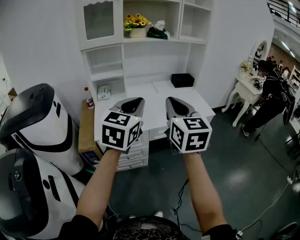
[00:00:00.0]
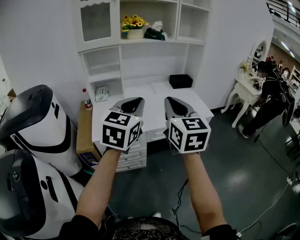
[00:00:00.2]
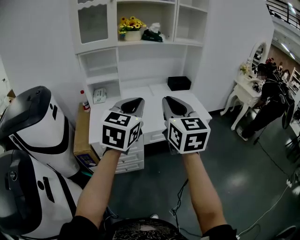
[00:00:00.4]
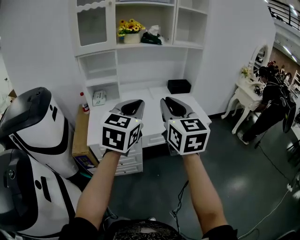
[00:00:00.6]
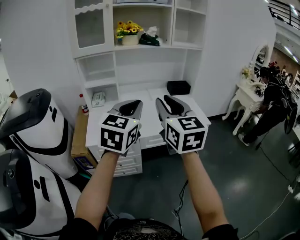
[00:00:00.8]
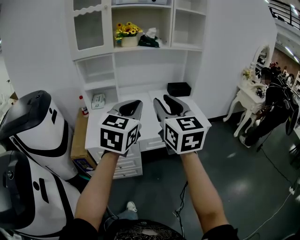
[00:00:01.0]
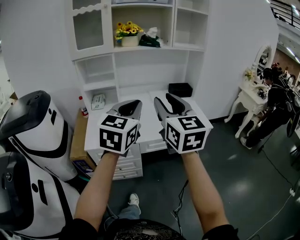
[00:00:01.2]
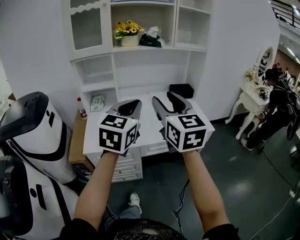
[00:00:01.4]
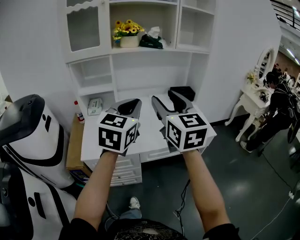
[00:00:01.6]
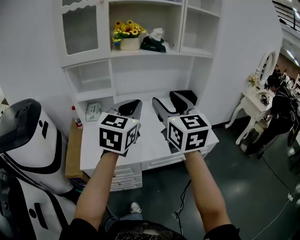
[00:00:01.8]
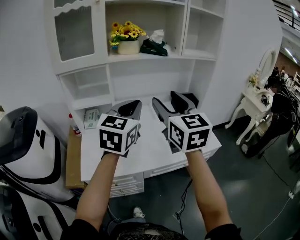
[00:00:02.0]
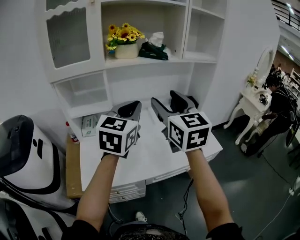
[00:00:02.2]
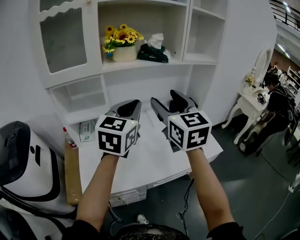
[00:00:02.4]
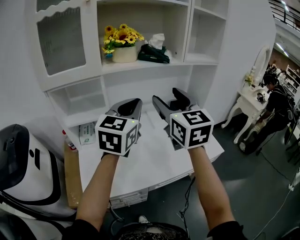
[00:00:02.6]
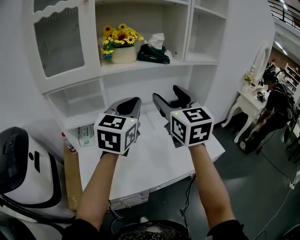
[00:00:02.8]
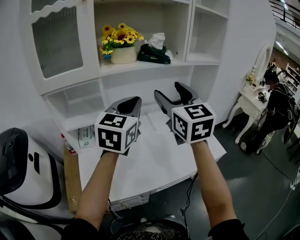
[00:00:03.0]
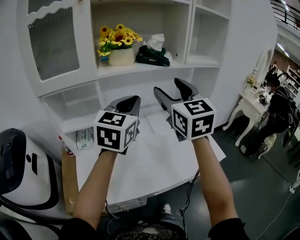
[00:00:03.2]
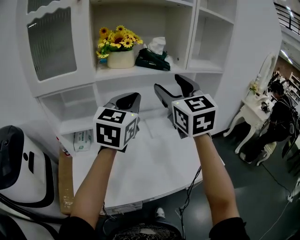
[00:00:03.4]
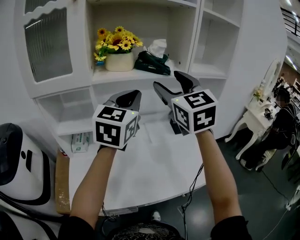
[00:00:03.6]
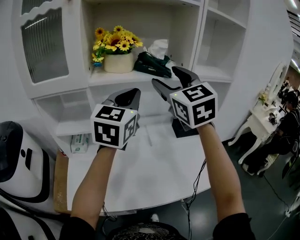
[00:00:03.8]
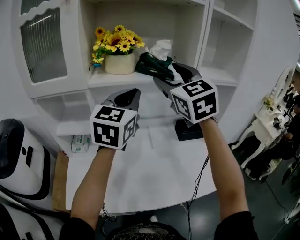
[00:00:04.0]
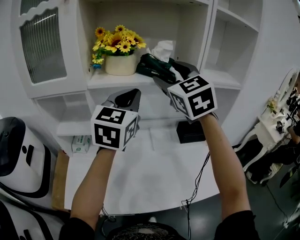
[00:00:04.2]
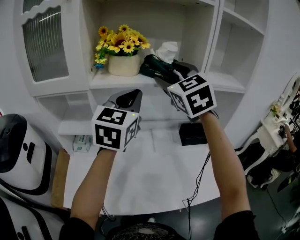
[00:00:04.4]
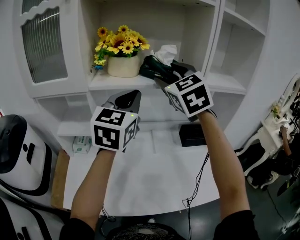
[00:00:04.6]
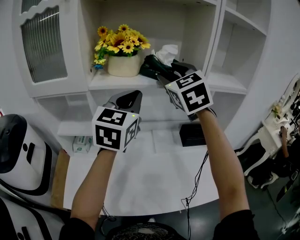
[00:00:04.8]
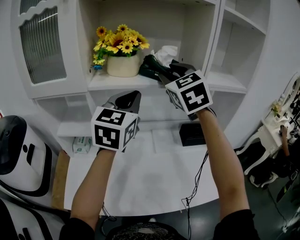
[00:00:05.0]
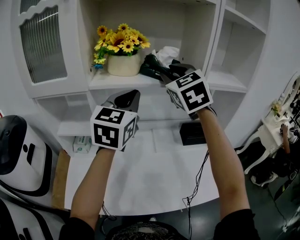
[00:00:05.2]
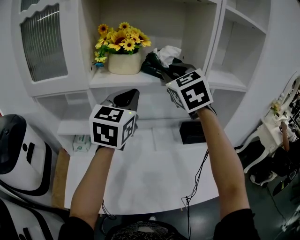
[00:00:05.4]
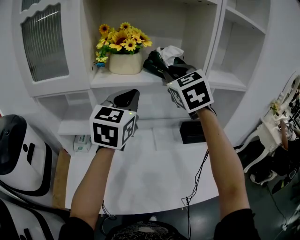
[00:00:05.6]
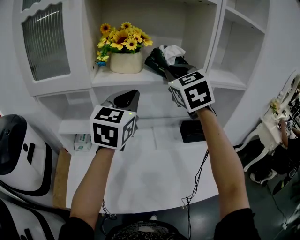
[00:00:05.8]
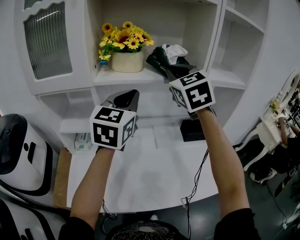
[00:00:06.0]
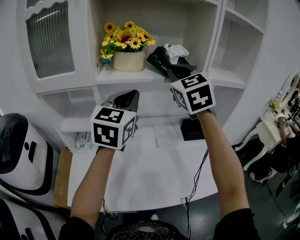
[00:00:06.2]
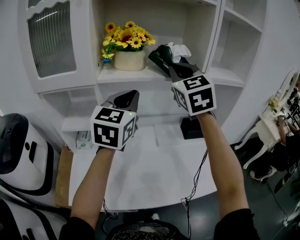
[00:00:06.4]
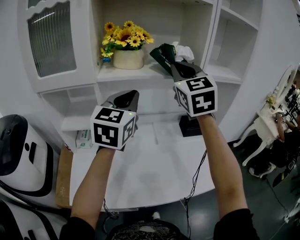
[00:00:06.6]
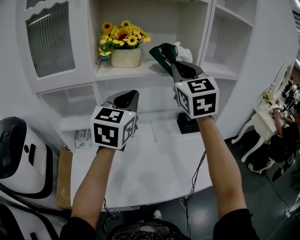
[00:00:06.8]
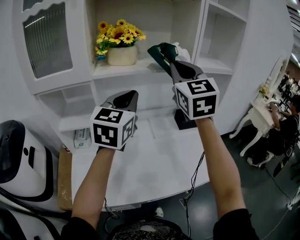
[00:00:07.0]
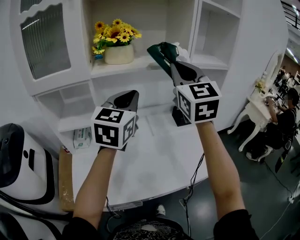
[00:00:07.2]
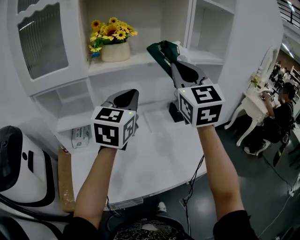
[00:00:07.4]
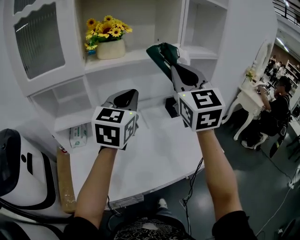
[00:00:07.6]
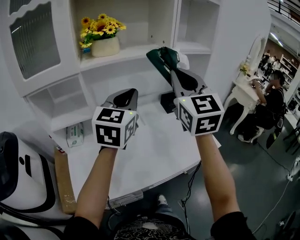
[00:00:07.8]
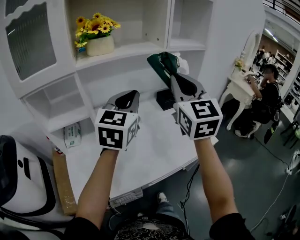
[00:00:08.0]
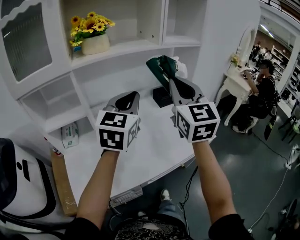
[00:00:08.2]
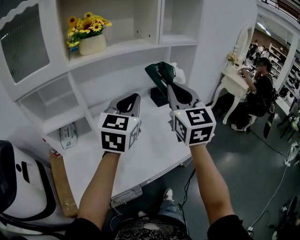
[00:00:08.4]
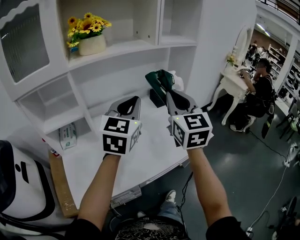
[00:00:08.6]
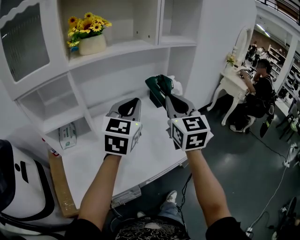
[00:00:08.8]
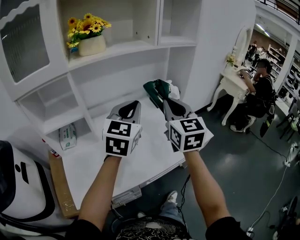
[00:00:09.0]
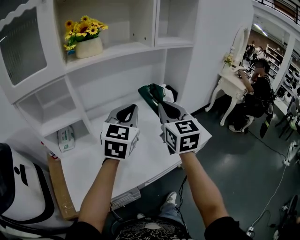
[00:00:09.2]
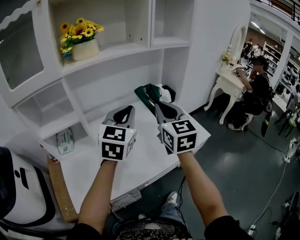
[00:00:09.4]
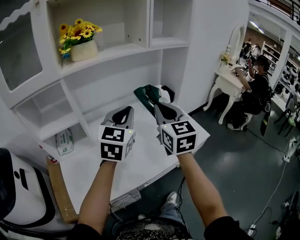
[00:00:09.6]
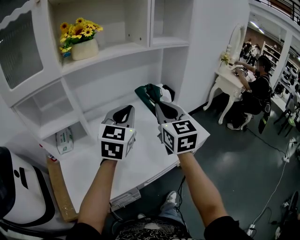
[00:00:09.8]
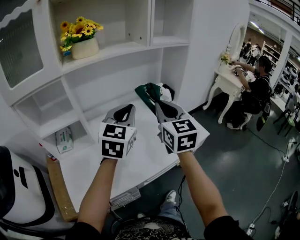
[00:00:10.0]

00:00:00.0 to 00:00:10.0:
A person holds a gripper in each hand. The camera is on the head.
00:00:00.0 to 00:00:01.4: Both grippers move forward and to the right, some 10 cm. The right gripper opens.
00:00:01.4 to 00:00:02.8: Both grippers move forward, about 30 cm.
00:00:02.8 to 00:00:04.2: The grippers both shift forward by approximately 15 cm. The right gripper swivels some 30 degrees.
00:00:04.2 to 00:00:05.8: The right gripper closes its fingers.
00:00:05.8 to 00:00:07.2: The right gripper is displaced backward by approximately 10 cm, and rotates some 20 degrees; the left gripper is displaced backward by roughly 5 cm.
00:00:07.2 to 00:00:08.6: The right gripper travels downward, backward and to the right by roughly 20 cm; the left gripper moves to the right, downward and backward, approximately 10 cm.
00:00:08.6 to 00:00:10.0: The grippers move only a little.

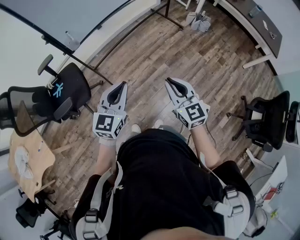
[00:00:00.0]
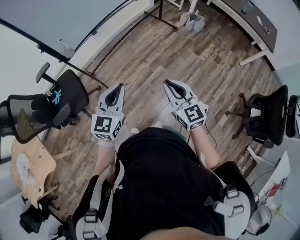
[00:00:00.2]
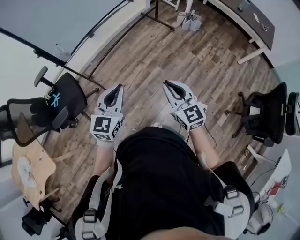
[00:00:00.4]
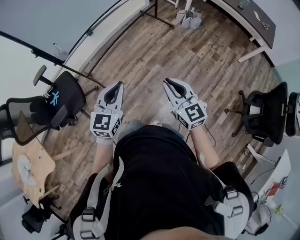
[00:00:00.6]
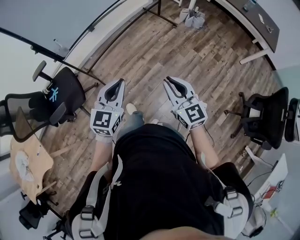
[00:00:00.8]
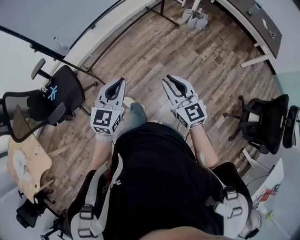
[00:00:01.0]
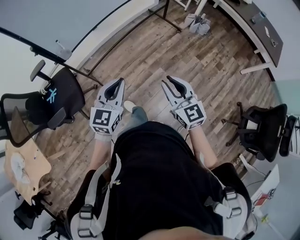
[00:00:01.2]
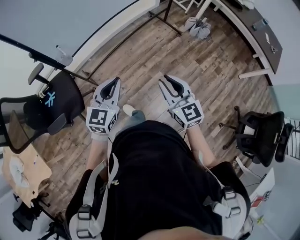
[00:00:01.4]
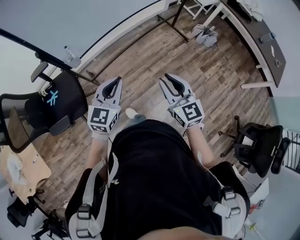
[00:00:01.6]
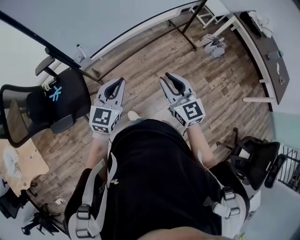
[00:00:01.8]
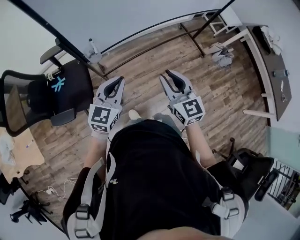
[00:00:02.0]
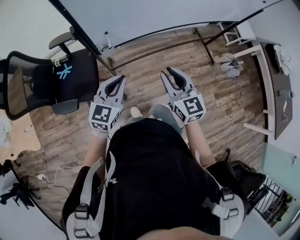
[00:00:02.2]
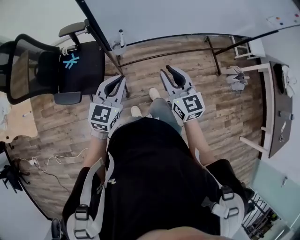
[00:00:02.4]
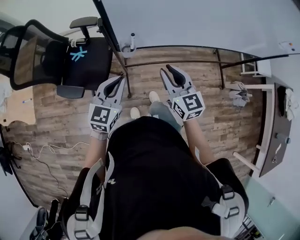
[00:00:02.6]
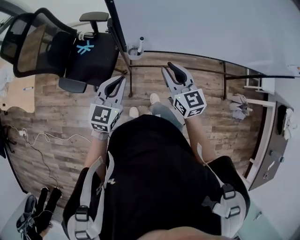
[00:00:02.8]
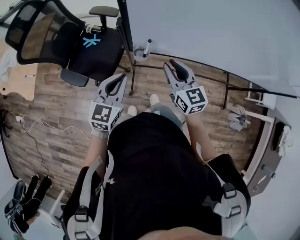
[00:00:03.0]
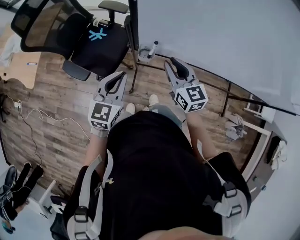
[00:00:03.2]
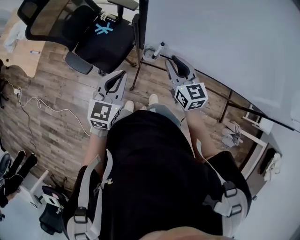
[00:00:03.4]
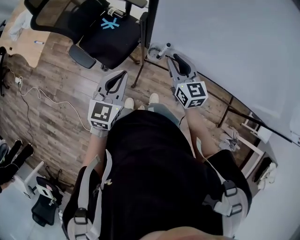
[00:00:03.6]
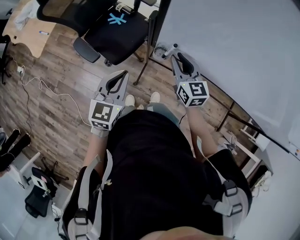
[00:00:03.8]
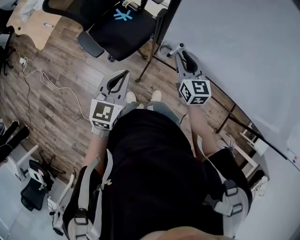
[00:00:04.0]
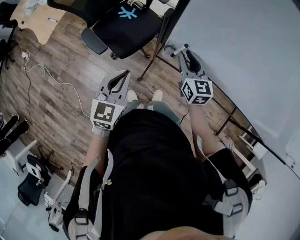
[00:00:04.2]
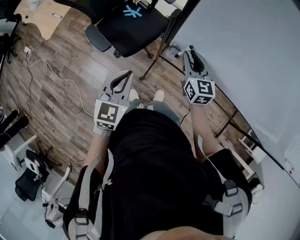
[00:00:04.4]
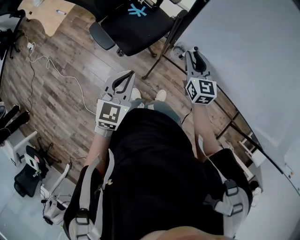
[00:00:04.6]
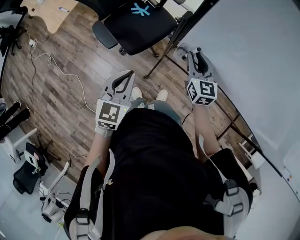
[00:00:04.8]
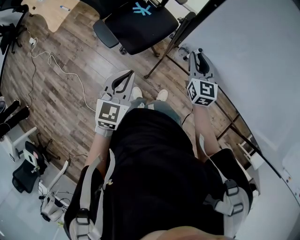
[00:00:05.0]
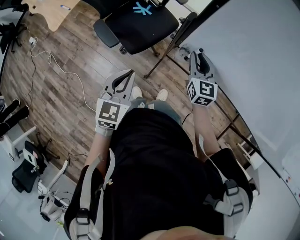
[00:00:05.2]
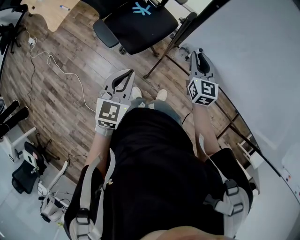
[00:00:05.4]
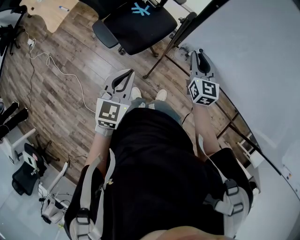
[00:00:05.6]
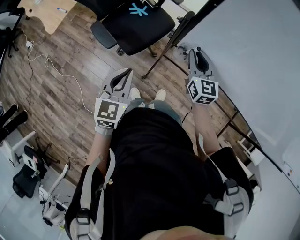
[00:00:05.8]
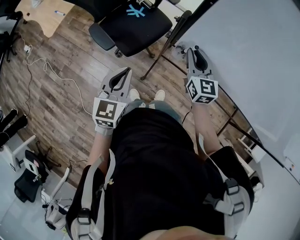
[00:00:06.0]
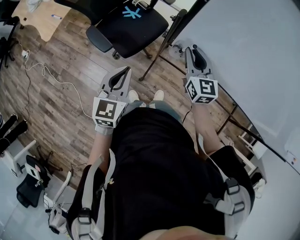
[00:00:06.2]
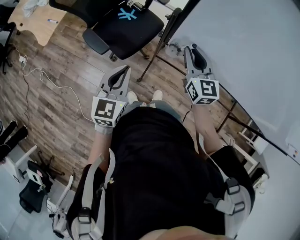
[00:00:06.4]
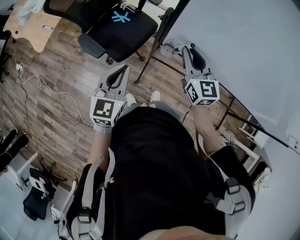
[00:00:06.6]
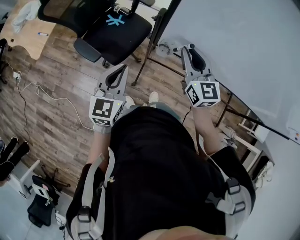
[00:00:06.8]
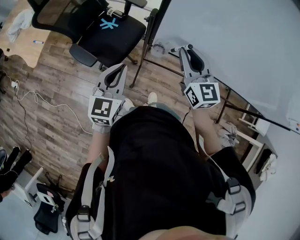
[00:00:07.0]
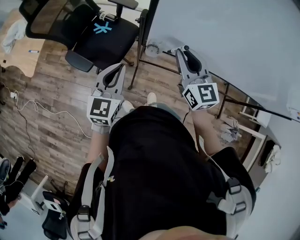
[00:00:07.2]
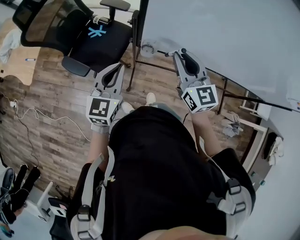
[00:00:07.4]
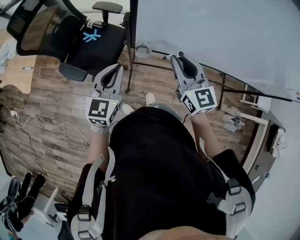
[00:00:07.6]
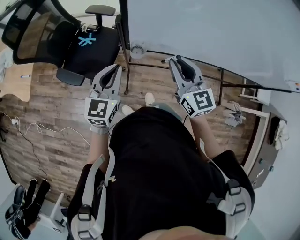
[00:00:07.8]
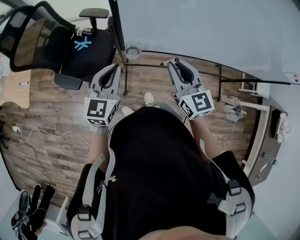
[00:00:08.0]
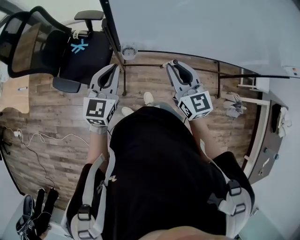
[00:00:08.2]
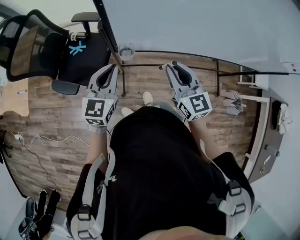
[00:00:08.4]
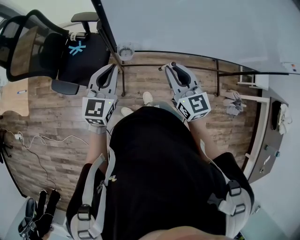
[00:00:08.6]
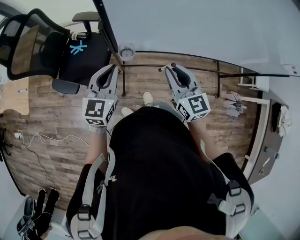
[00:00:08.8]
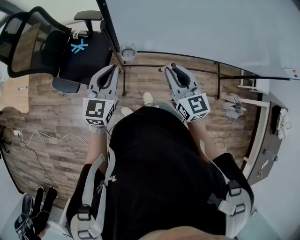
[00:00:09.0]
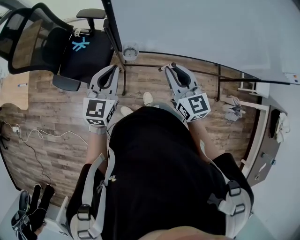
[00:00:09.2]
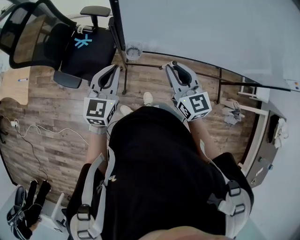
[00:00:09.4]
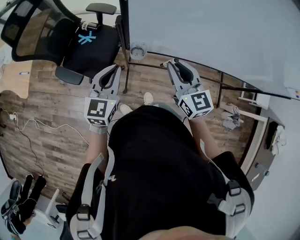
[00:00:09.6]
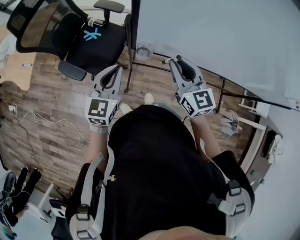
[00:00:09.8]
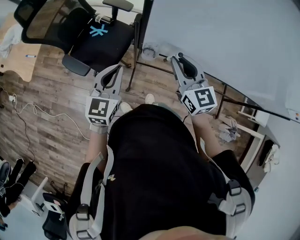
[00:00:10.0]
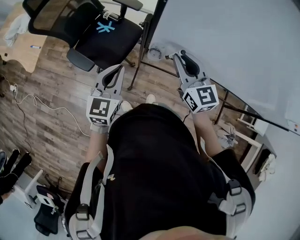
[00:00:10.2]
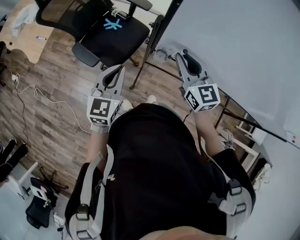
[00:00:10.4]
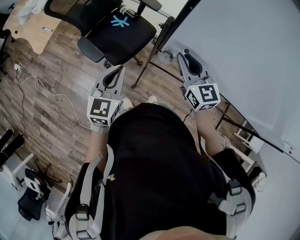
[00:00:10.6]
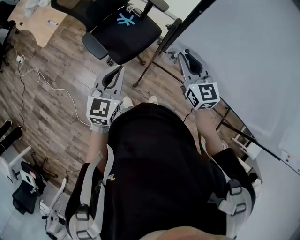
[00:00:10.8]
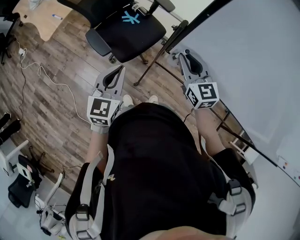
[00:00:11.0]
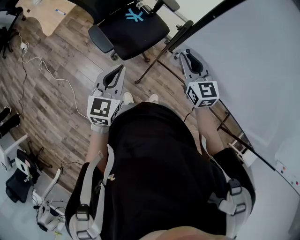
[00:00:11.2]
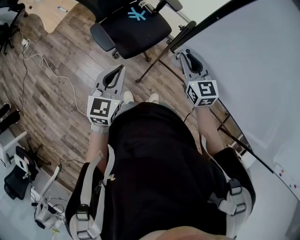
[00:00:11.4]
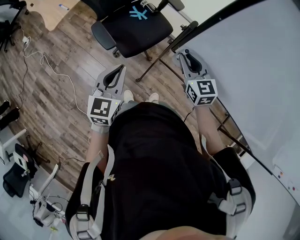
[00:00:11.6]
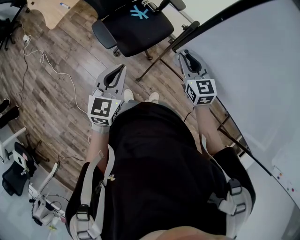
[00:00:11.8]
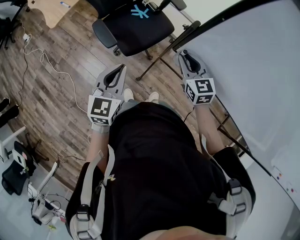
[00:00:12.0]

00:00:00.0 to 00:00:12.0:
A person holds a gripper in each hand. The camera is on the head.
00:00:00.0 to 00:00:01.6: The grippers both shift forward by about 20 cm.
00:00:01.6 to 00:00:03.0: The left gripper ends up roughly 25 cm from where it was, and changes its angle by some 50 degrees. Meanwhile the right gripper changes place by about 40 cm, and rotates roughly 40 degrees.
00:00:03.0 to 00:00:04.4: The right gripper heads forward and downward, covering approximately 10 cm, while the left gripper moves to the left, some 5 cm, and rotates roughly 30 degrees.
00:00:04.4 to 00:00:06.0: The grippers make only small movements.
00:00:06.0 to 00:00:07.6: The right gripper moves backward, upward and to the right, some 15 cm. Meanwhile the left gripper heads to the right, covering some 10 cm, and changes its angle by approximately 20 degrees.
00:00:07.6 to 00:00:09.0: The right gripper moves some 5 cm.
00:00:09.0 to 00:00:10.4: The left gripper shifts about 10 cm to the left, and swivels about 20 degrees, while the right gripper travels forward and to the left by some 15 cm.
00:00:10.4 to 00:00:12.0: The right gripper goes about 10 cm downward and to the left, while the left gripper goes roughly 5 cm to the left.

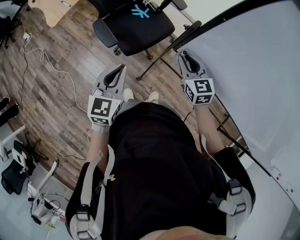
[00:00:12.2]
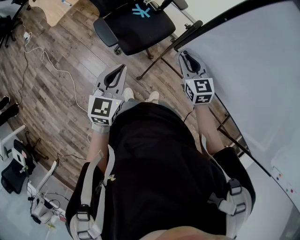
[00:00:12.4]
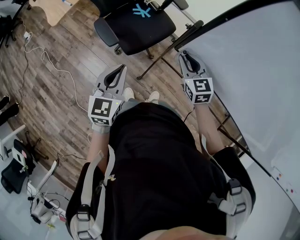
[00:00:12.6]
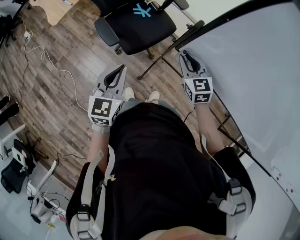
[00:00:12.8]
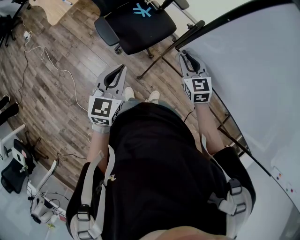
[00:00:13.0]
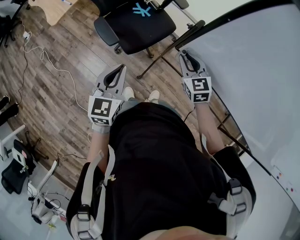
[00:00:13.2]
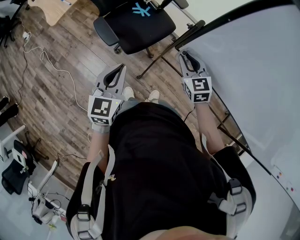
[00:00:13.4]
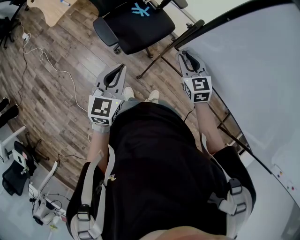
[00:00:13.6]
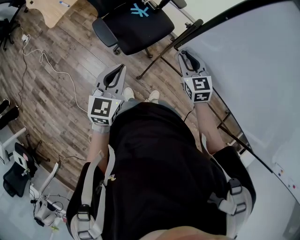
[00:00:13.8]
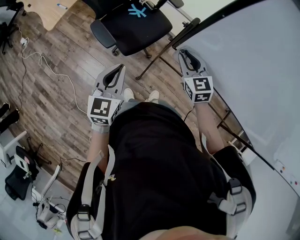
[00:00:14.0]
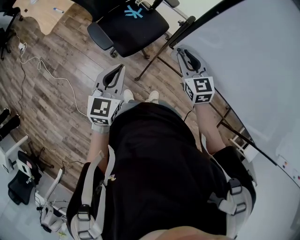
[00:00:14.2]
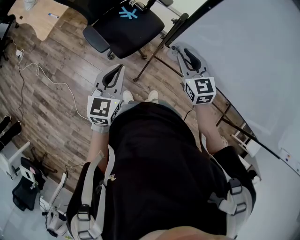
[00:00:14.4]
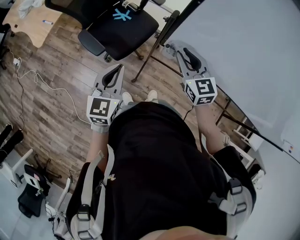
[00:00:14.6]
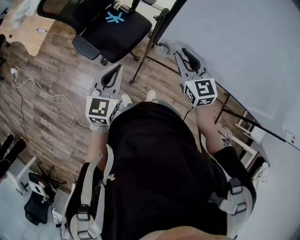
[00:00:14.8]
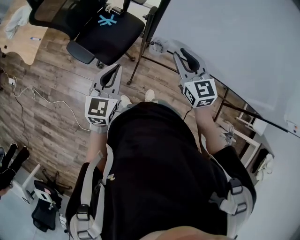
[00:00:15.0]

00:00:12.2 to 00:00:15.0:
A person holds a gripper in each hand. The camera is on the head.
00:00:12.2 to 00:00:13.6: There are only small adjustments of the grippers.
00:00:13.6 to 00:00:15.0: The left gripper shifts about 5 cm to the right. Meanwhile the right gripper travels upward, to the right and backward by some 10 cm.
